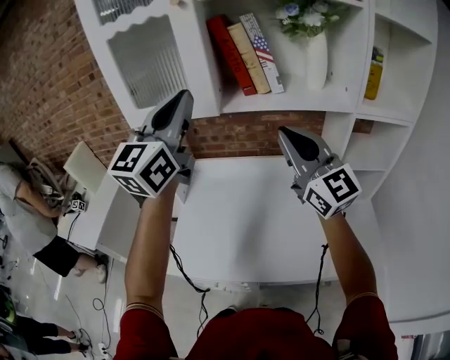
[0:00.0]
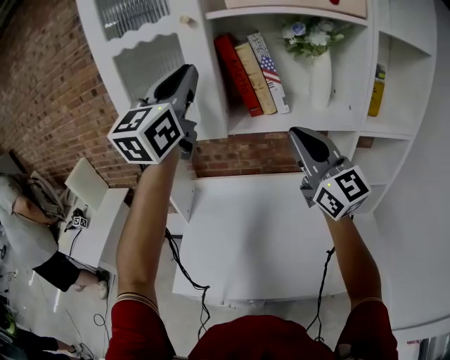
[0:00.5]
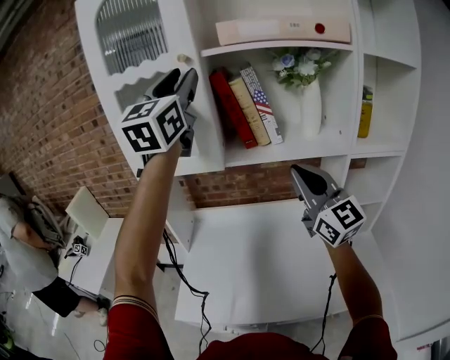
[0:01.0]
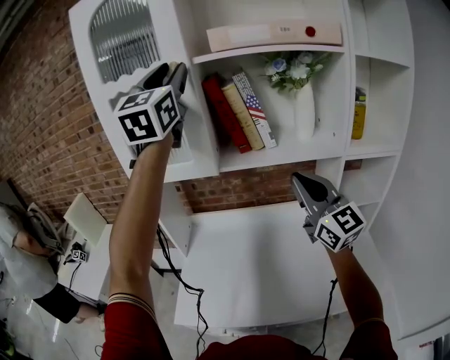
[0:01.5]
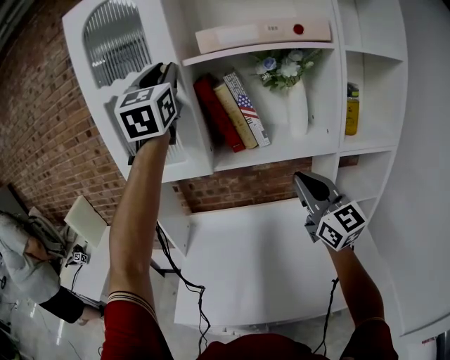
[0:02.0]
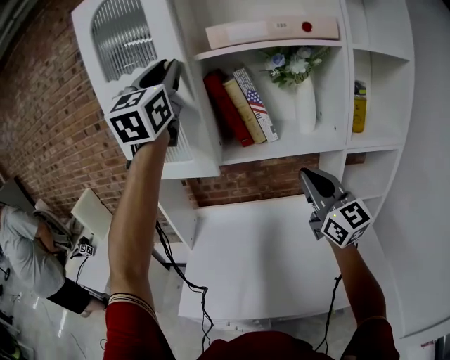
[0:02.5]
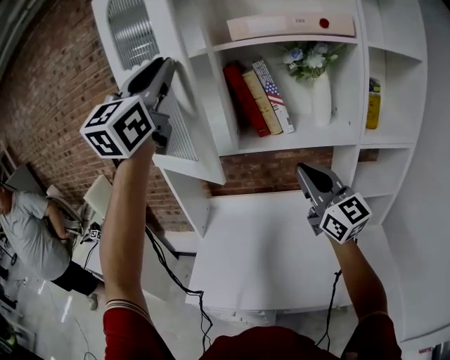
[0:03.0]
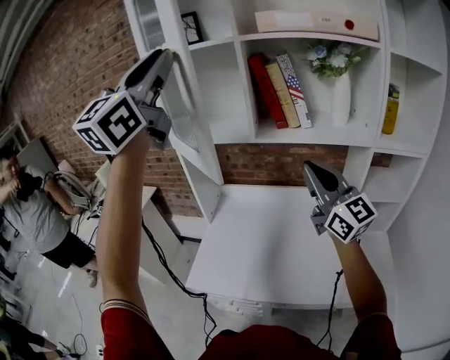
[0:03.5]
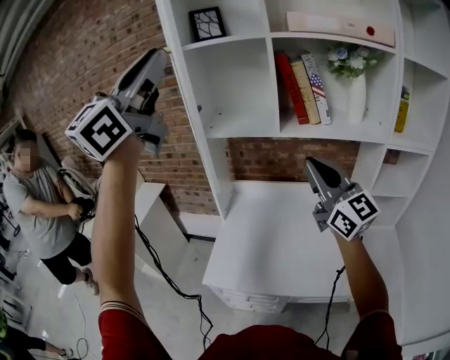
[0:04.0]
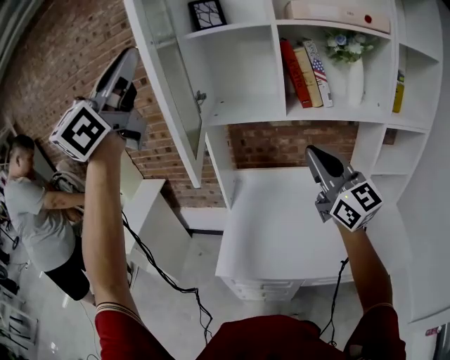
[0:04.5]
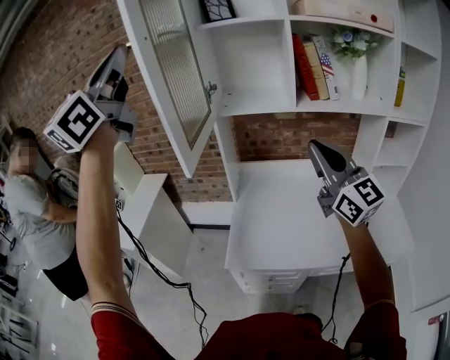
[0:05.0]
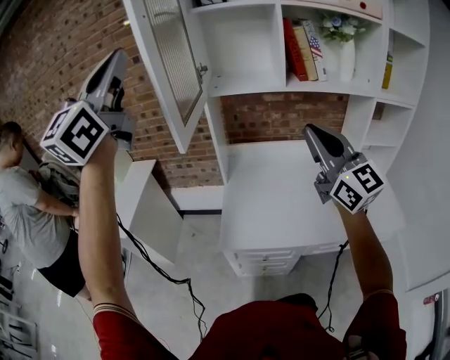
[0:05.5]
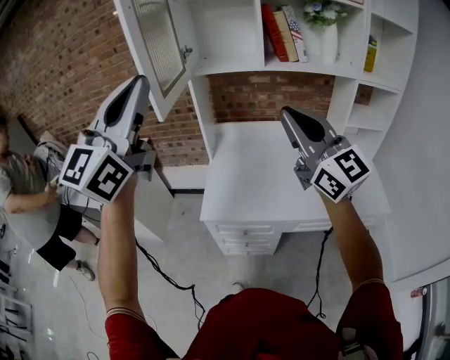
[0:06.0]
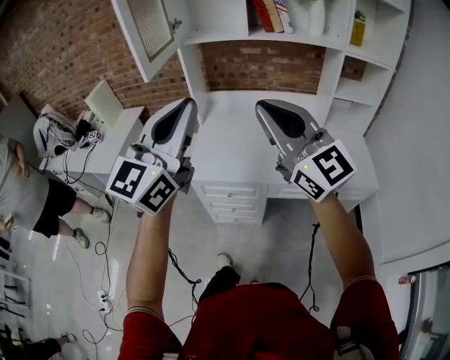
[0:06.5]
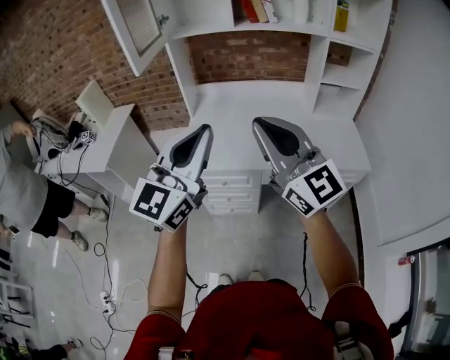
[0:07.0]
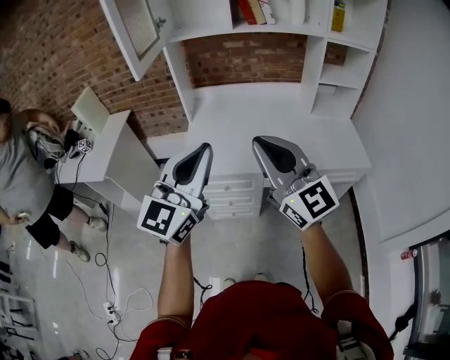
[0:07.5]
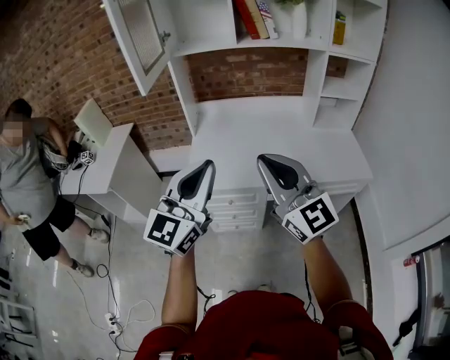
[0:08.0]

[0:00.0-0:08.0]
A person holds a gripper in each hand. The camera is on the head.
0:00.0 to 0:02.0: The right gripper shifts some 5 cm to the right. Meanwhile the left gripper moves upward and forward, some 20 cm, and swivels approximately 20 degrees.
0:02.0 to 0:04.0: The left gripper travels backward and to the left by about 30 cm, and swivels about 20 degrees, while the right gripper travels to the left by approximately 15 cm.
0:04.0 to 0:06.0: The left gripper goes approximately 25 cm backward and downward. The right gripper shifts some 20 cm backward and to the left.
0:06.0 to 0:08.0: The right gripper is displaced backward and downward by roughly 20 cm, while the left gripper is displaced downward, backward and to the right by approximately 30 cm.

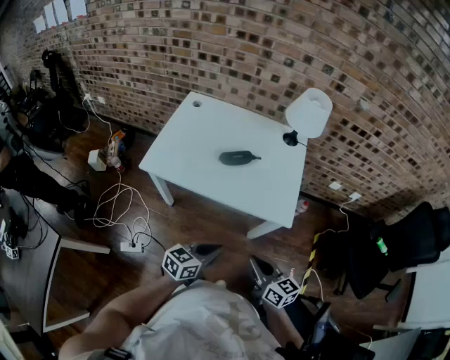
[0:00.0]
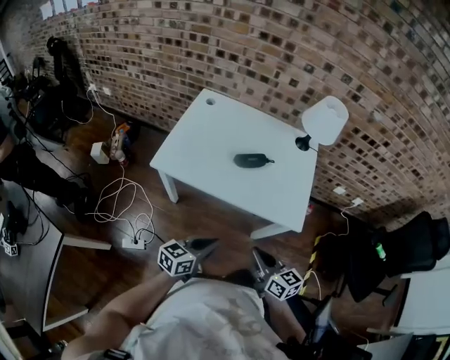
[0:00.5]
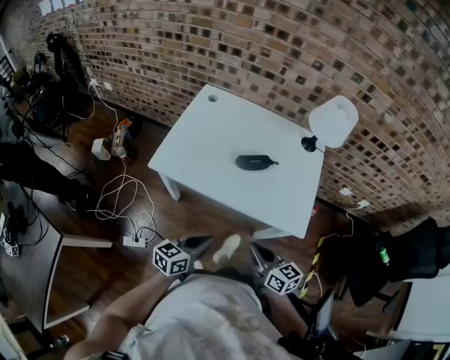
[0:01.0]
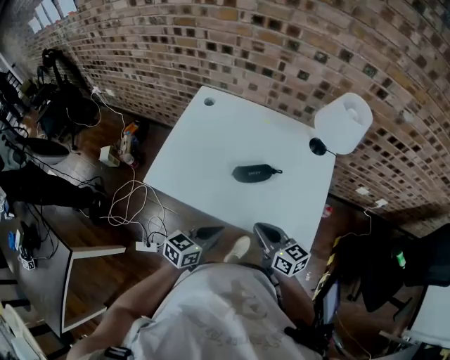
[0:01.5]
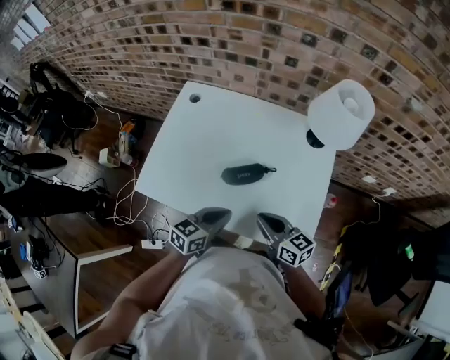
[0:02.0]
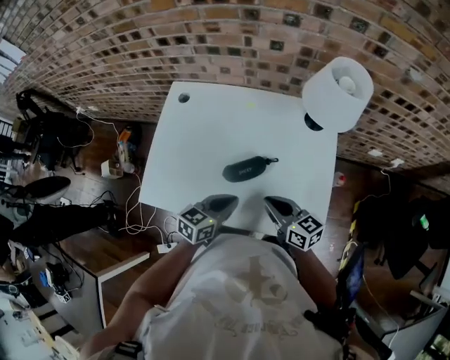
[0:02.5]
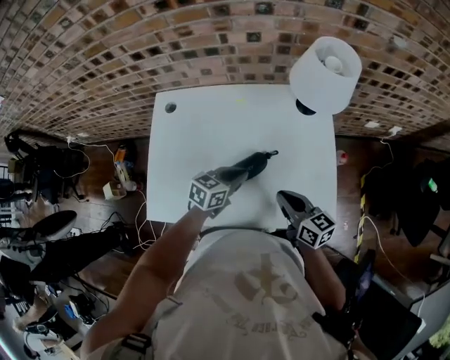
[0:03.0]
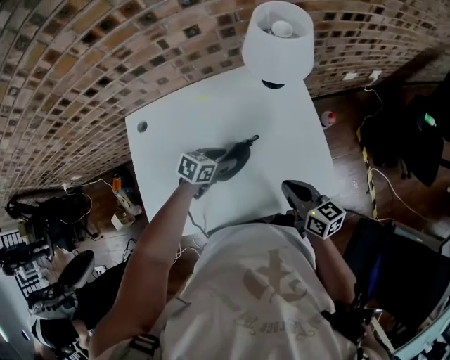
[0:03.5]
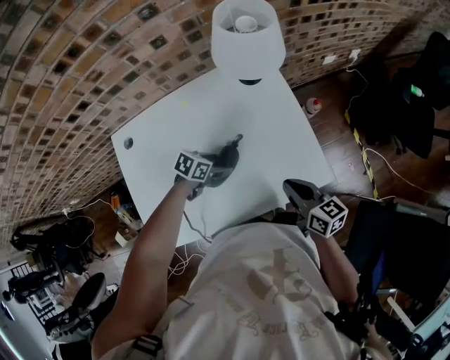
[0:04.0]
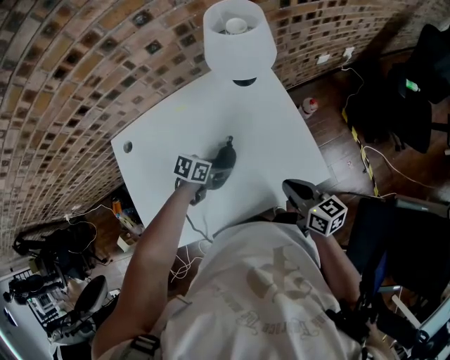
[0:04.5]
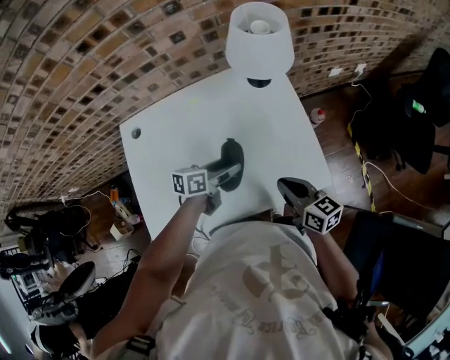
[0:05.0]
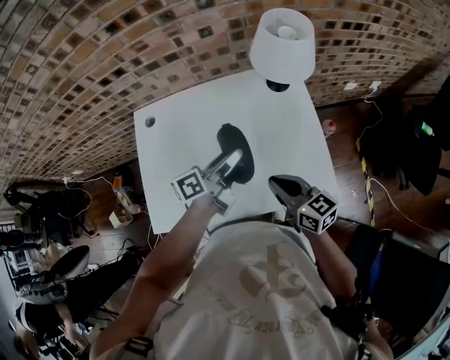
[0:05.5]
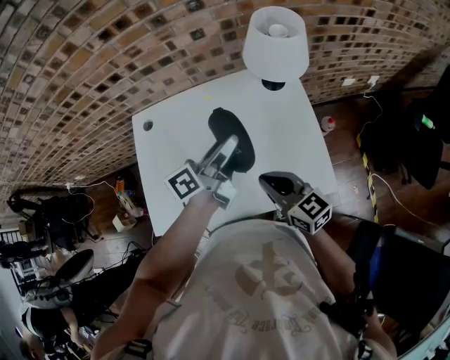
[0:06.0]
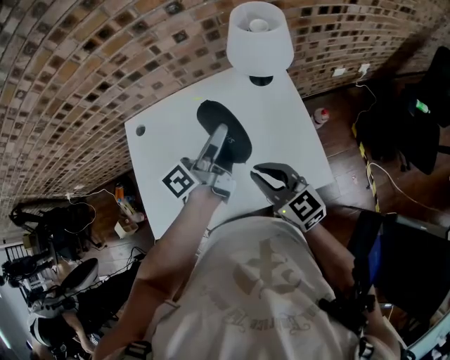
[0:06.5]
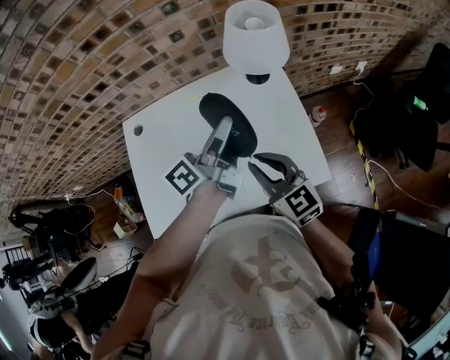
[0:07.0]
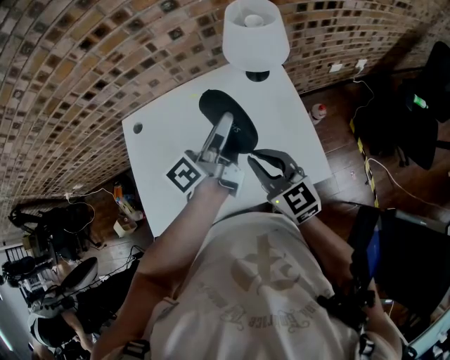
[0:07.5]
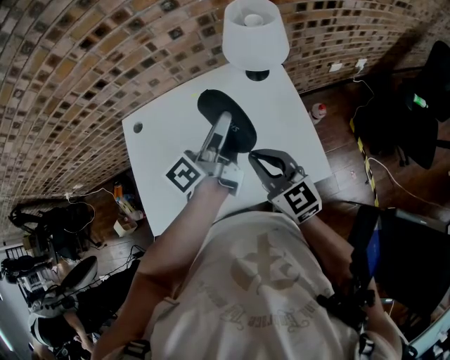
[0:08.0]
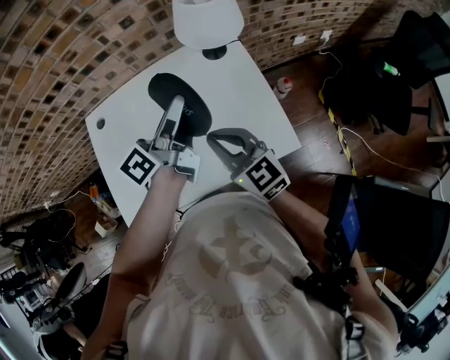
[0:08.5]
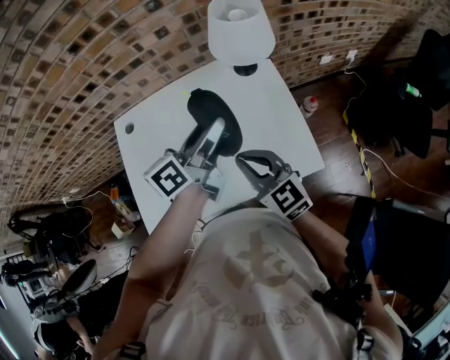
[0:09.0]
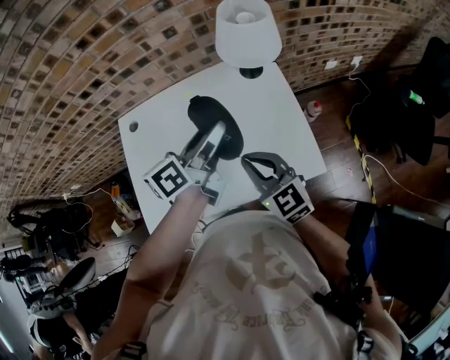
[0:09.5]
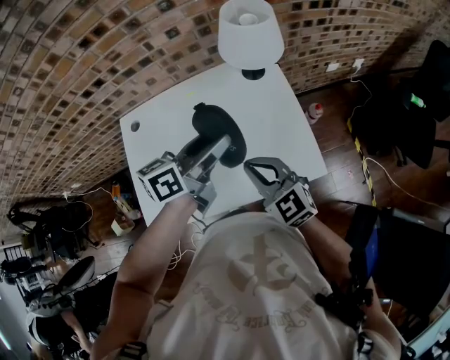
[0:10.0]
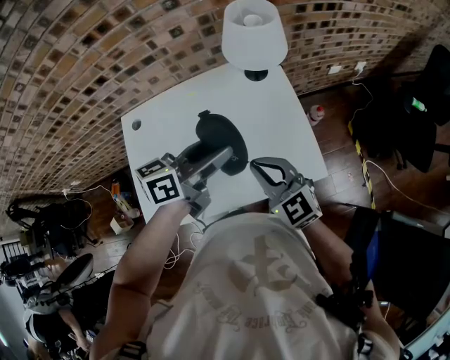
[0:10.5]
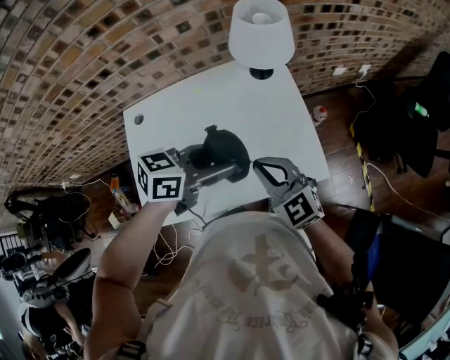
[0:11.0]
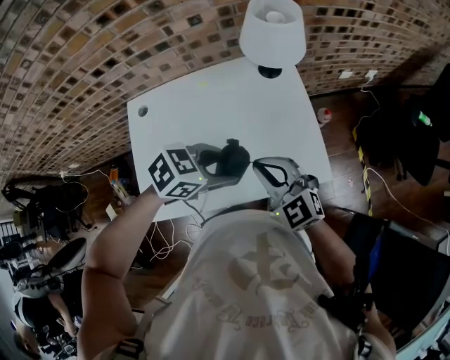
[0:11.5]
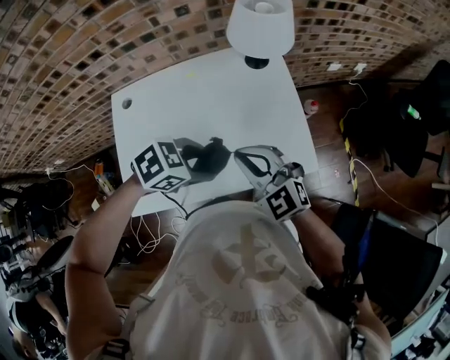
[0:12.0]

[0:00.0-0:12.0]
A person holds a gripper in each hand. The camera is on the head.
0:00.0 to 0:02.0: The two grippers go approximately 30 cm forward.
0:02.0 to 0:04.0: The left gripper moves about 20 cm, swivels approximately 60 degrees, and opens its fingers, while the right gripper shifts by some 5 cm, and rotates approximately 40 degrees.
0:04.0 to 0:06.0: The left gripper heads upward, covering approximately 25 cm, and tips its fingers upward by roughly 50 degrees. Meanwhile the right gripper ends up some 10 cm from where it was, and changes its angle by roughly 30 degrees.
0:06.0 to 0:08.0: The right gripper ends up roughly 5 cm from where it was; the left gripper changes place by approximately 5 cm.
0:08.0 to 0:10.0: The left gripper is displaced backward by about 5 cm, and rotates roughly 30 degrees.
0:10.0 to 0:12.0: The left gripper shifts by approximately 15 cm, and angles its fingers downward, by roughly 50 degrees.

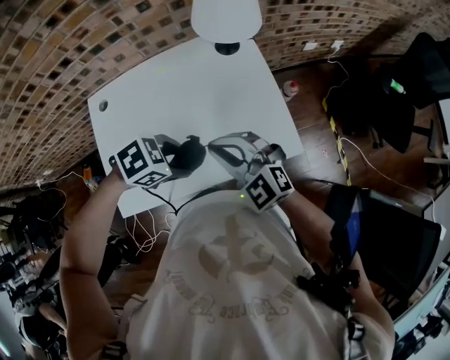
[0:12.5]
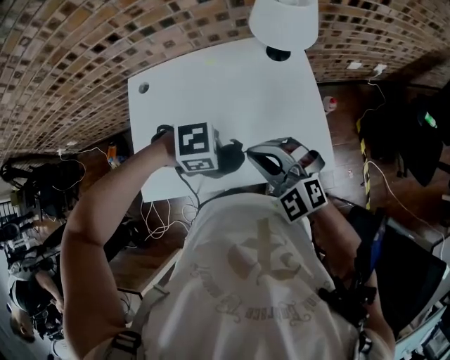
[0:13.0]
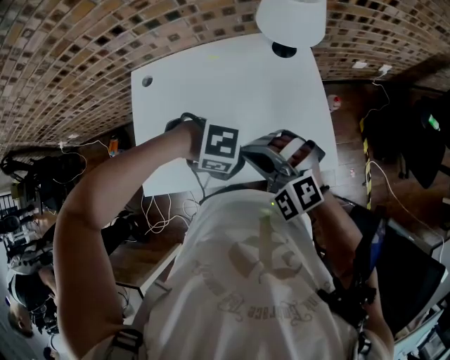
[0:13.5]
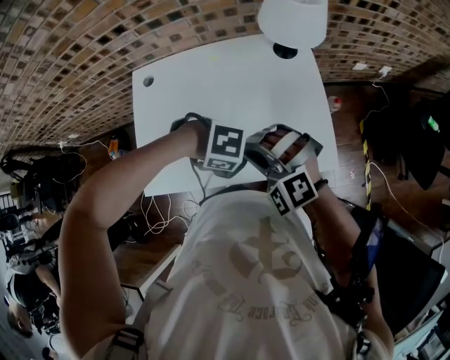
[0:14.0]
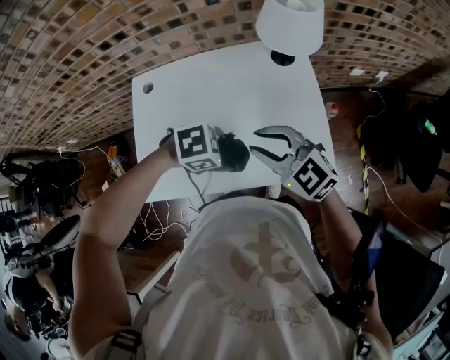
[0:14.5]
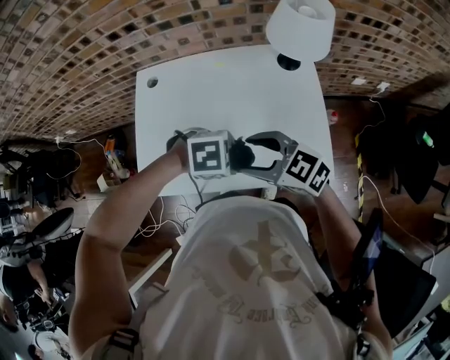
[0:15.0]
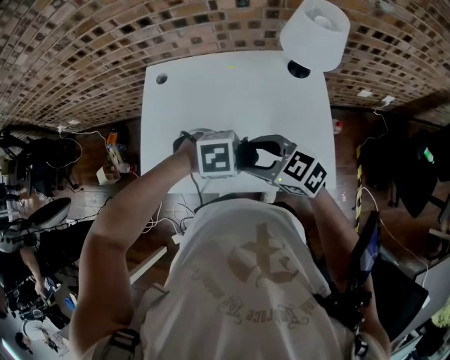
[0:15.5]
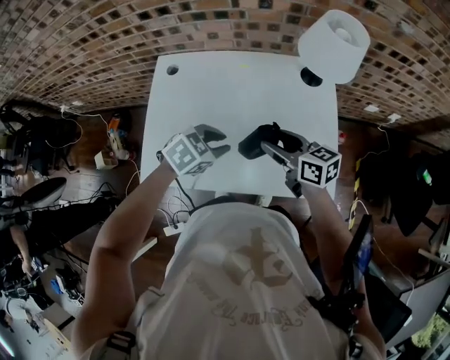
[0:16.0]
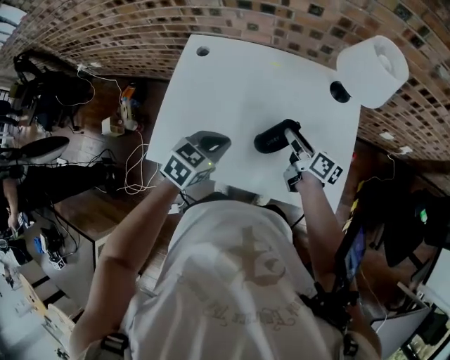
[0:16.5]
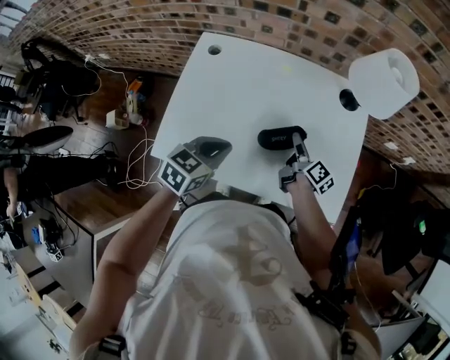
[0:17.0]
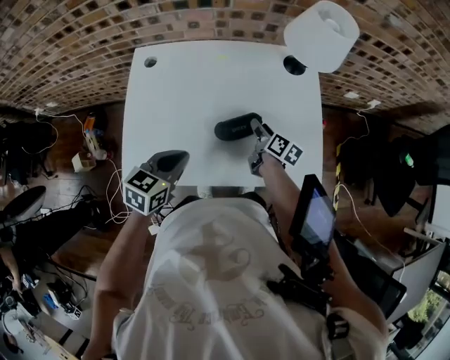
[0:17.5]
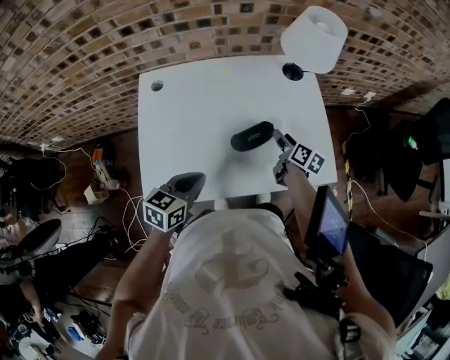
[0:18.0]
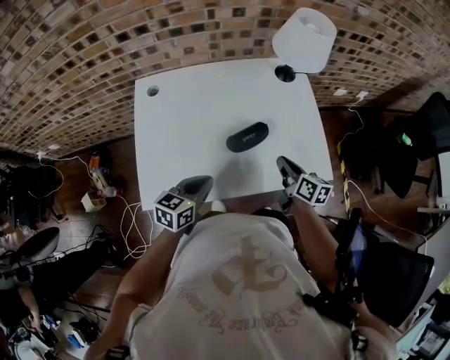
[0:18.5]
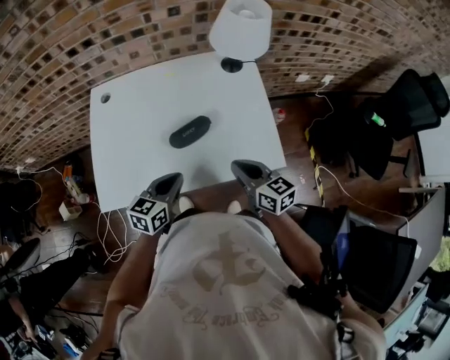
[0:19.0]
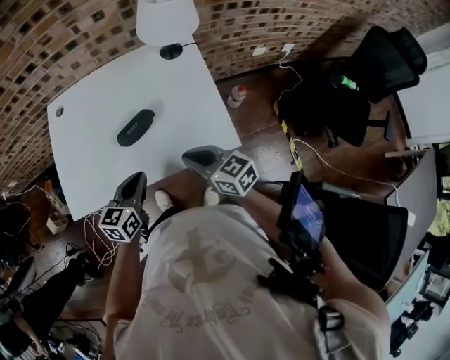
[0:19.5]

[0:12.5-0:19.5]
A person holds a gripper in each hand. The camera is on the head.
0:12.5 to 0:14.5: The right gripper opens.
0:14.5 to 0:16.0: The right gripper is displaced downward by roughly 5 cm, twists some 50 degrees clockwise, seen from behind, and opens. The left gripper moves about 10 cm, and changes its angle by roughly 40 degrees.
0:16.0 to 0:17.5: The right gripper shifts some 15 cm downward, and changes its angle by about 50 degrees, while the left gripper heads to the left and backward, covering approximately 10 cm, turns by approximately 30 degrees, and closes up.
0:17.5 to 0:19.5: The left gripper shifts roughly 15 cm to the right. Meanwhile the right gripper travels backward, upward and to the right by some 25 cm, twists about 40 degrees counterclockwise, seen from behind, and closes its fingers.
